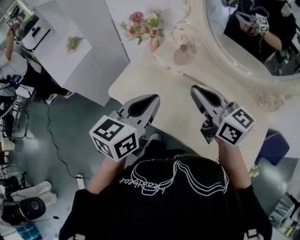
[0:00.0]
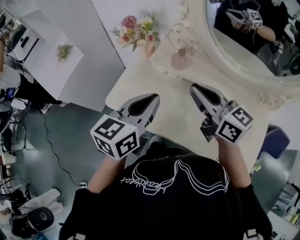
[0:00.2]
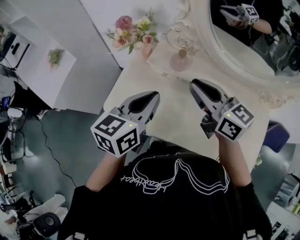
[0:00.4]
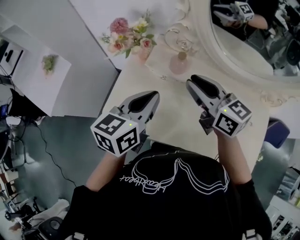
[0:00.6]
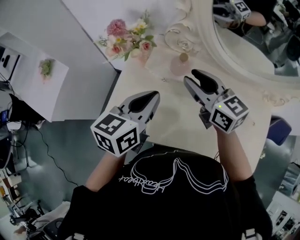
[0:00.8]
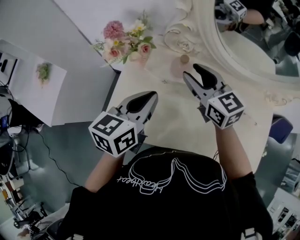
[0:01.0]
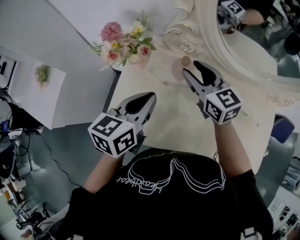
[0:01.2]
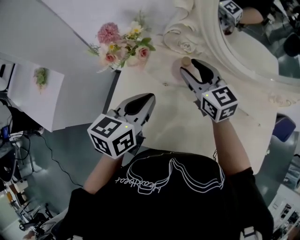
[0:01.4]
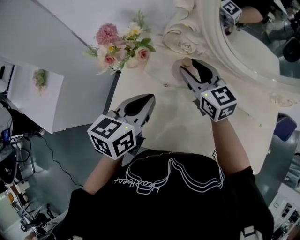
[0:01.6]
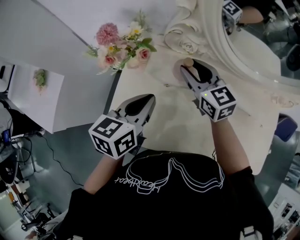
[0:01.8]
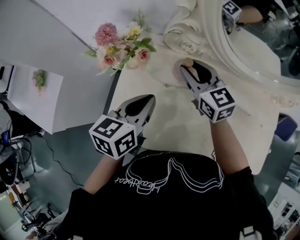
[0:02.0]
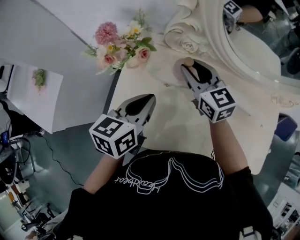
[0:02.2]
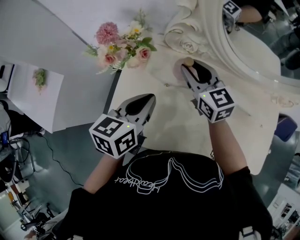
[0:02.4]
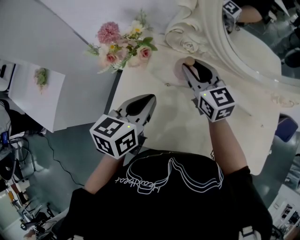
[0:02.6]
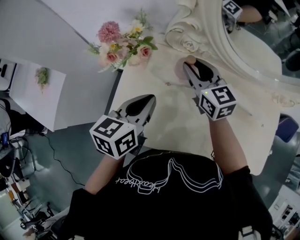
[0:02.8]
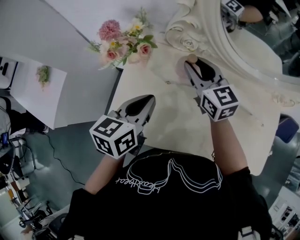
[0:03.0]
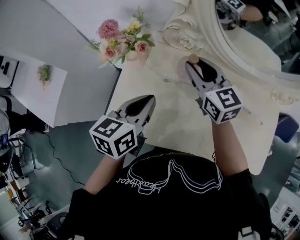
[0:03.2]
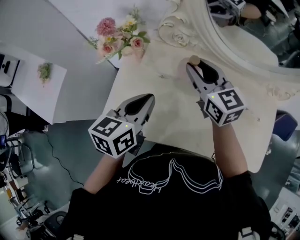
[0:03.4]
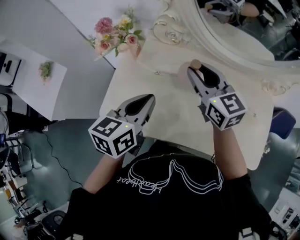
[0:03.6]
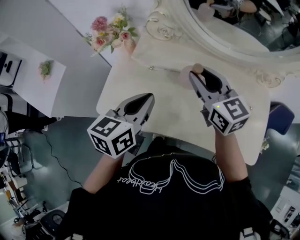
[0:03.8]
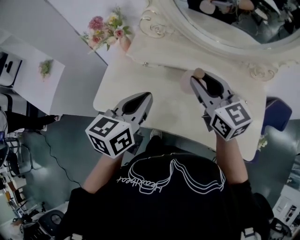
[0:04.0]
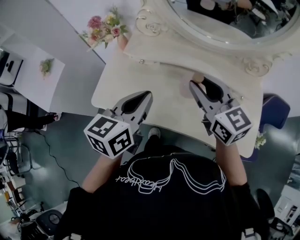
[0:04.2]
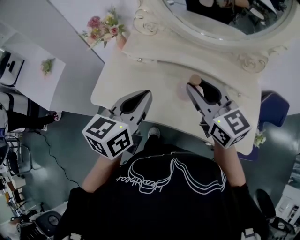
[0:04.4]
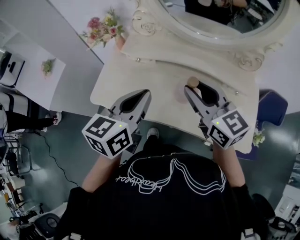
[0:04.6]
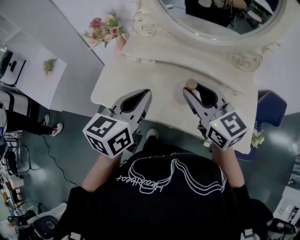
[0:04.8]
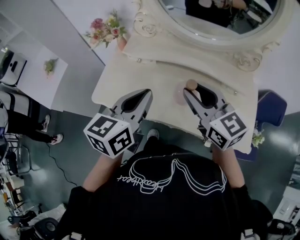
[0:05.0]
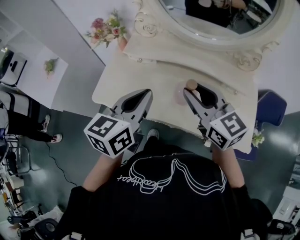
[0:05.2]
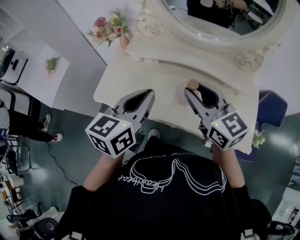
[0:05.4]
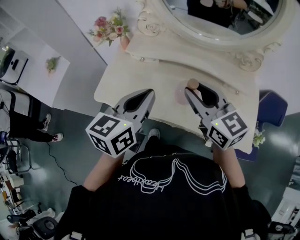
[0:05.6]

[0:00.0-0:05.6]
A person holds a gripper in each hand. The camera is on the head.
0:00.0 to 0:01.4: The two grippers go some 20 cm forward and downward. The right gripper swivels roughly 30 degrees, and opens its fingers.
0:01.4 to 0:02.8: There are only small adjustments of the grippers.
0:02.8 to 0:04.2: Both grippers travel together backward, to the right and upward, approximately 25 cm.
0:04.2 to 0:05.6: Both grippers travel together backward, approximately 5 cm.

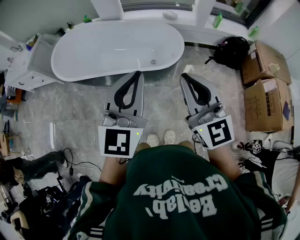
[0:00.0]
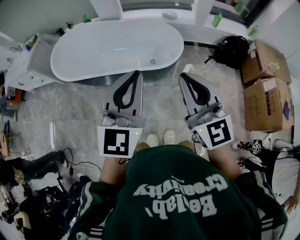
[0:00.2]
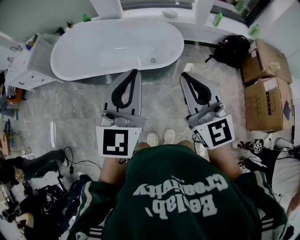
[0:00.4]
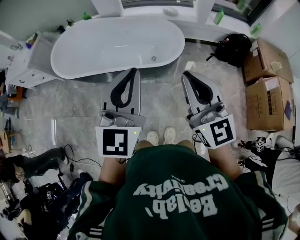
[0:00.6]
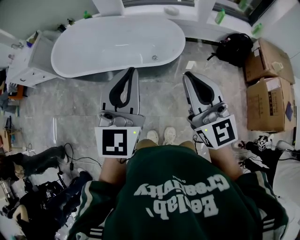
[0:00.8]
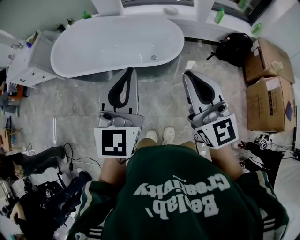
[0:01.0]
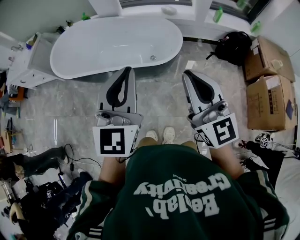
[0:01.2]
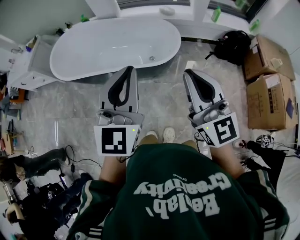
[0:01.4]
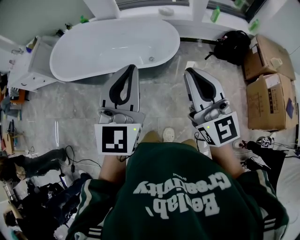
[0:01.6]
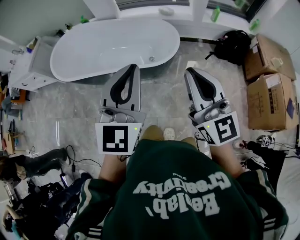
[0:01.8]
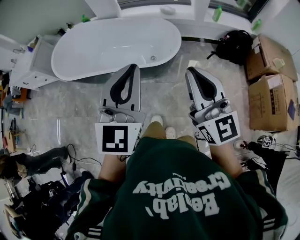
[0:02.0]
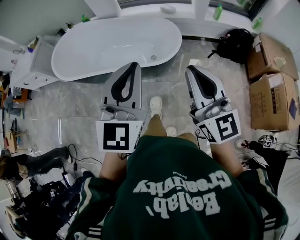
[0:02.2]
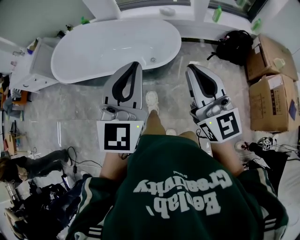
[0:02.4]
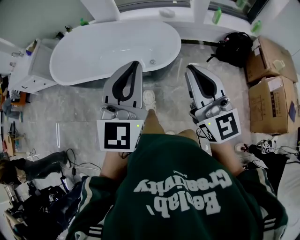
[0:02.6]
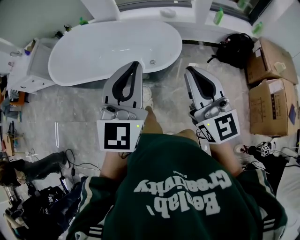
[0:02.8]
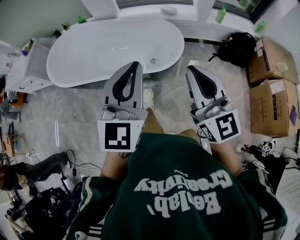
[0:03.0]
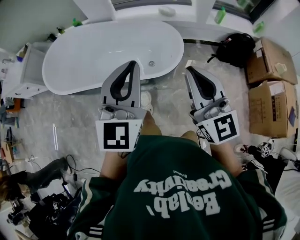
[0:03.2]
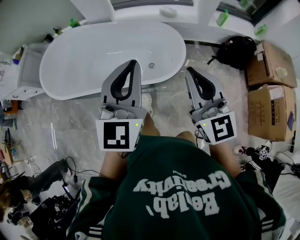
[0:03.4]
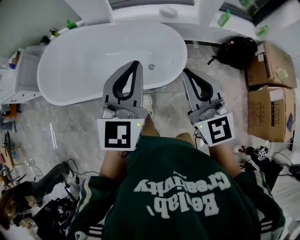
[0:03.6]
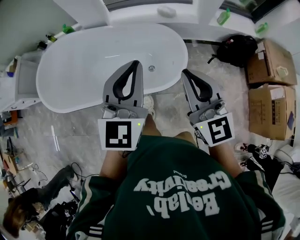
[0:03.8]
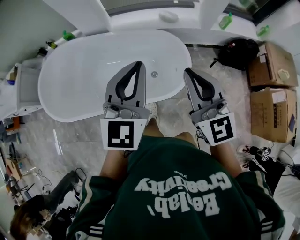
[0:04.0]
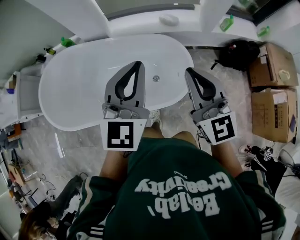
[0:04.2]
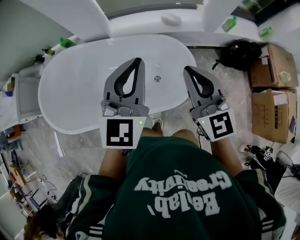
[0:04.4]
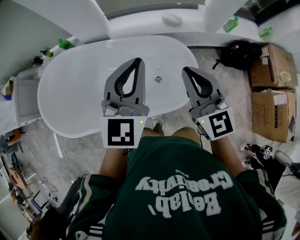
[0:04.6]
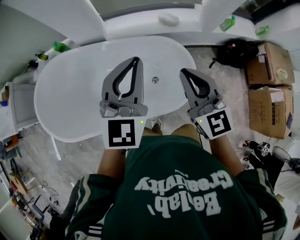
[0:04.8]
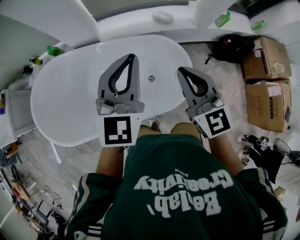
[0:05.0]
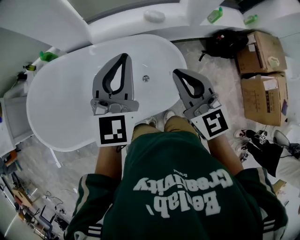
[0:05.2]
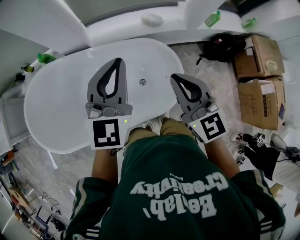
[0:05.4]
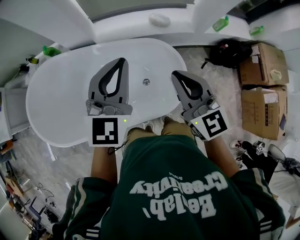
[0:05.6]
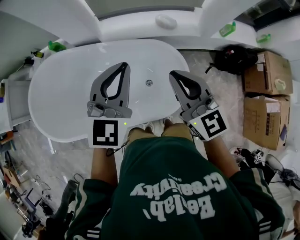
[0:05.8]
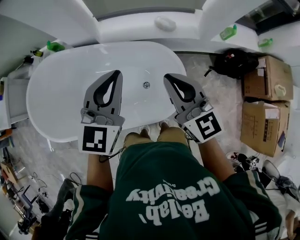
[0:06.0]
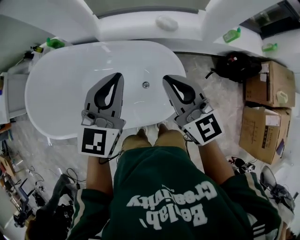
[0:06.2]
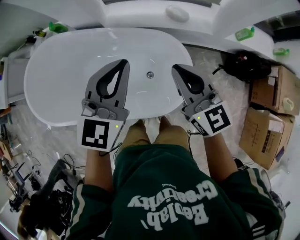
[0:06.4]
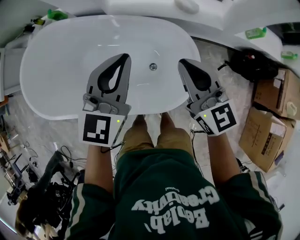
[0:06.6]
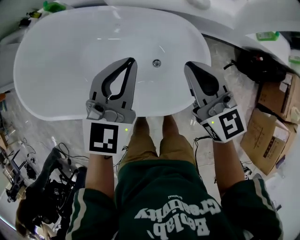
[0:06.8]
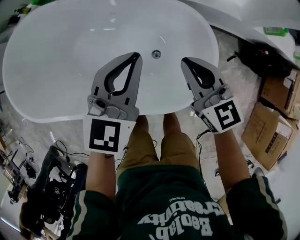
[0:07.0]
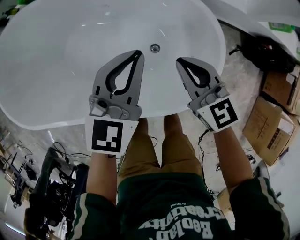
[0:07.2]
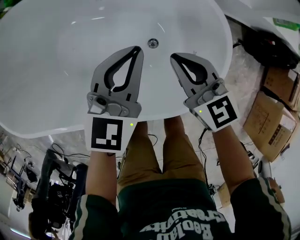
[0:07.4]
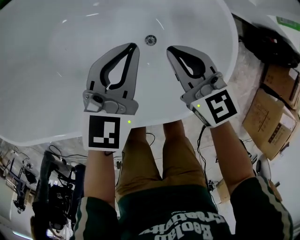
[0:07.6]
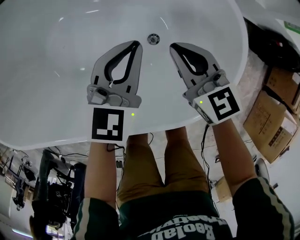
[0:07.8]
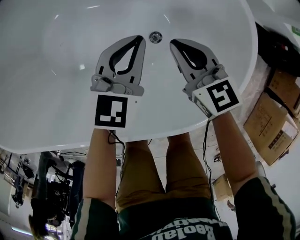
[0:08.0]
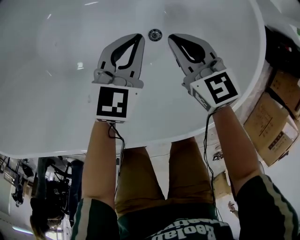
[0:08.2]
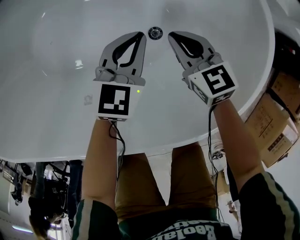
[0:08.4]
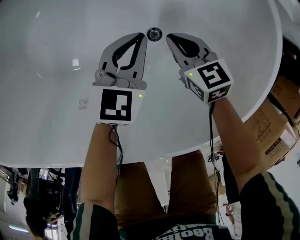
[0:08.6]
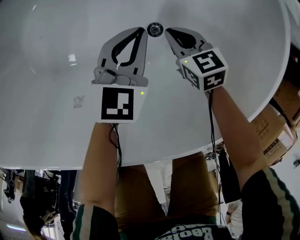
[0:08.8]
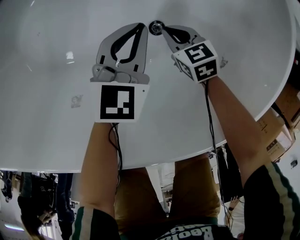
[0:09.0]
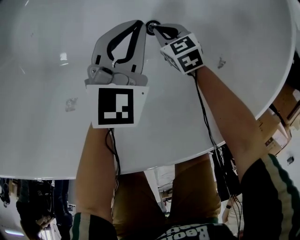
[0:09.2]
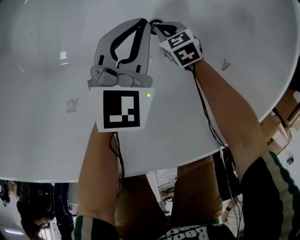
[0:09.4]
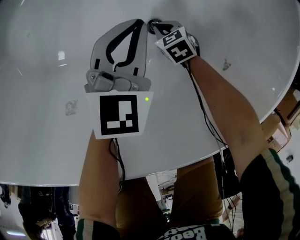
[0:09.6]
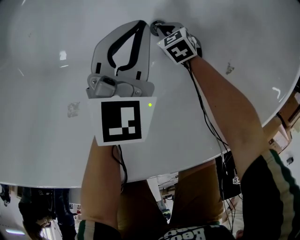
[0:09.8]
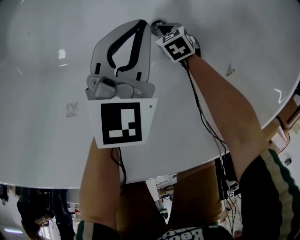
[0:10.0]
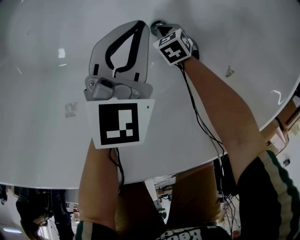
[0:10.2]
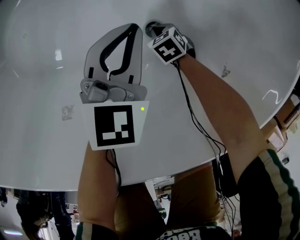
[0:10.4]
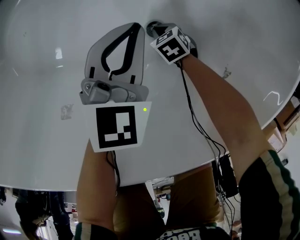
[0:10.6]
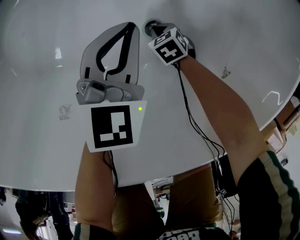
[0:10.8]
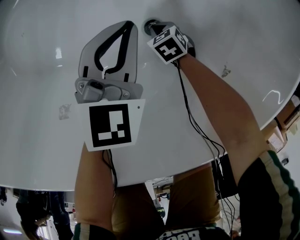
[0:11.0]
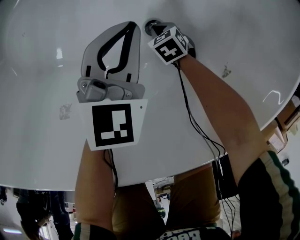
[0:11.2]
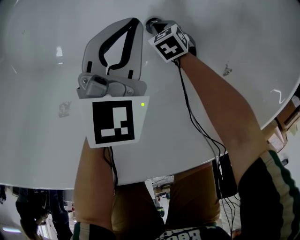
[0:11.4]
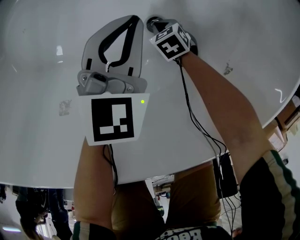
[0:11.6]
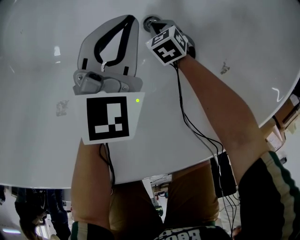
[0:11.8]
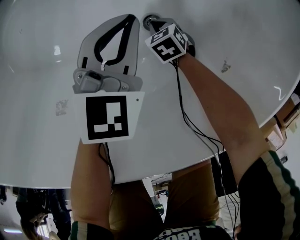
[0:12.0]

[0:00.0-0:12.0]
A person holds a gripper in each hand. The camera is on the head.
0:00.0 to 0:01.6: The grippers both shift to the right by roughly 5 cm.
0:01.6 to 0:03.0: The grippers both shift forward by approximately 10 cm.
0:03.0 to 0:04.4: Both grippers move forward, roughly 35 cm.
0:04.4 to 0:06.0: The left gripper shifts some 10 cm forward and downward. The right gripper heads forward, covering about 10 cm.
0:06.0 to 0:07.6: The two grippers go roughly 40 cm downward. The right gripper swivels about 30 degrees.
0:07.6 to 0:09.0: The two grippers go roughly 30 cm downward. The right gripper rotates some 30 degrees.
0:09.0 to 0:10.4: The right gripper goes approximately 15 cm downward, and turns by roughly 30 degrees.
0:10.4 to 0:12.0: There are only small adjustments of the grippers.

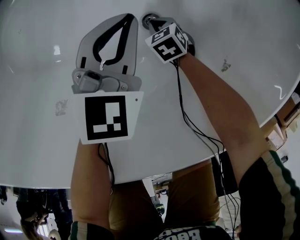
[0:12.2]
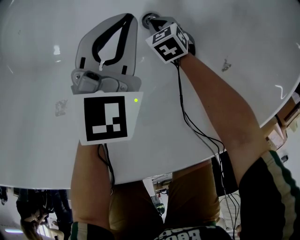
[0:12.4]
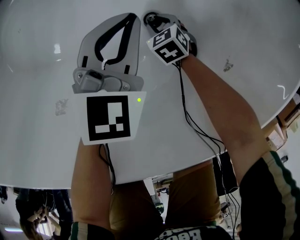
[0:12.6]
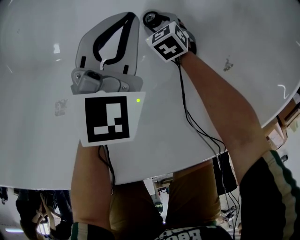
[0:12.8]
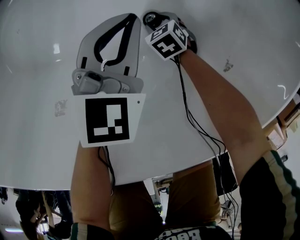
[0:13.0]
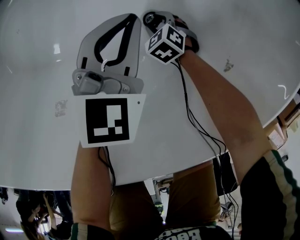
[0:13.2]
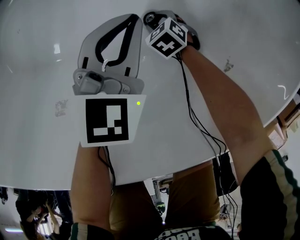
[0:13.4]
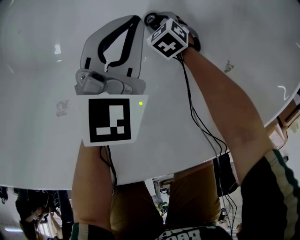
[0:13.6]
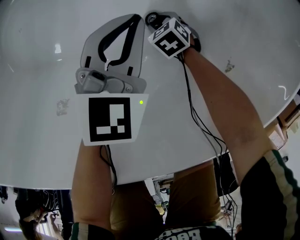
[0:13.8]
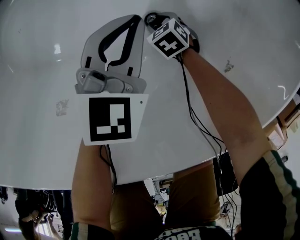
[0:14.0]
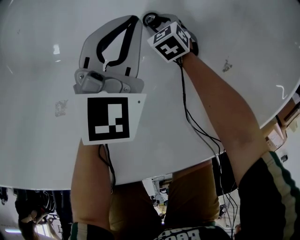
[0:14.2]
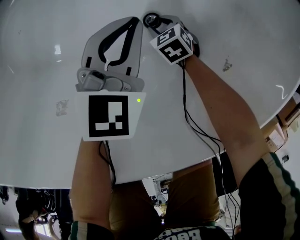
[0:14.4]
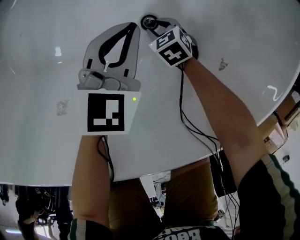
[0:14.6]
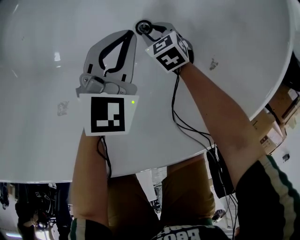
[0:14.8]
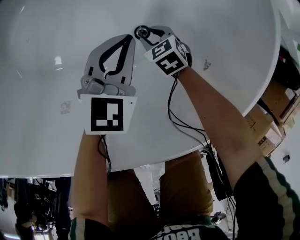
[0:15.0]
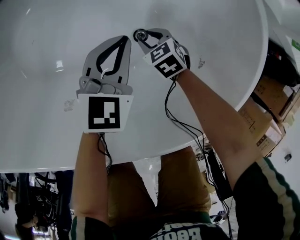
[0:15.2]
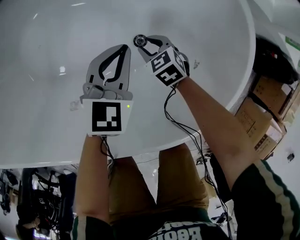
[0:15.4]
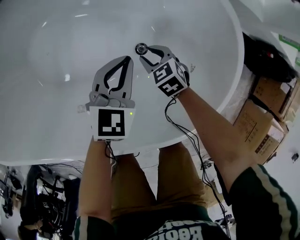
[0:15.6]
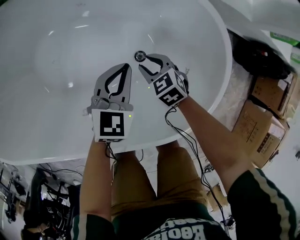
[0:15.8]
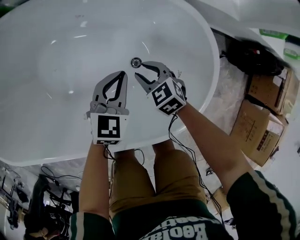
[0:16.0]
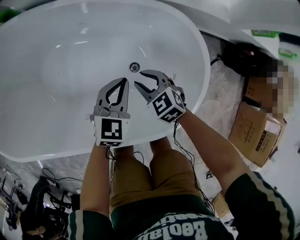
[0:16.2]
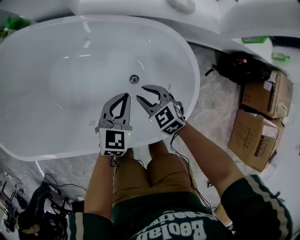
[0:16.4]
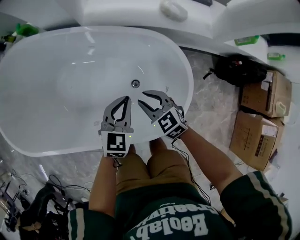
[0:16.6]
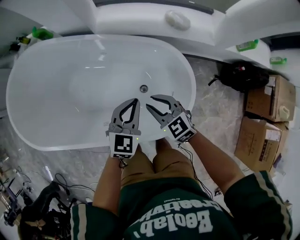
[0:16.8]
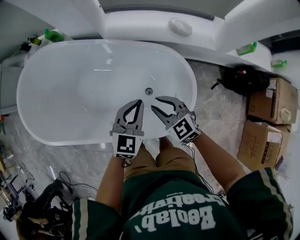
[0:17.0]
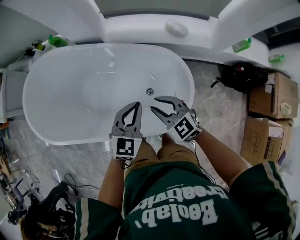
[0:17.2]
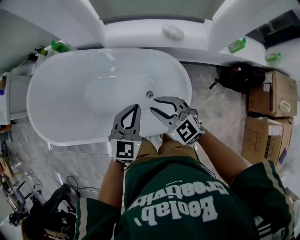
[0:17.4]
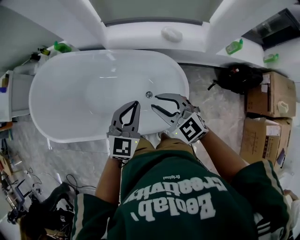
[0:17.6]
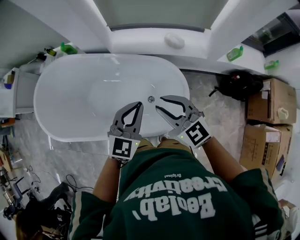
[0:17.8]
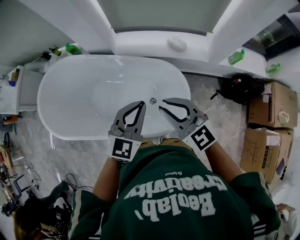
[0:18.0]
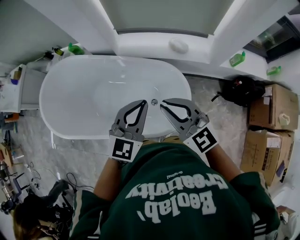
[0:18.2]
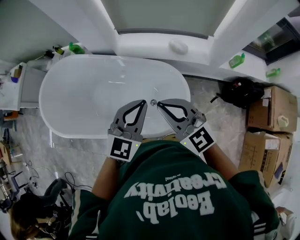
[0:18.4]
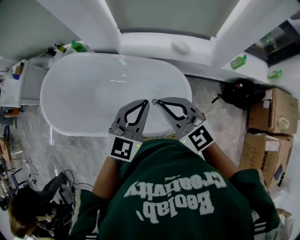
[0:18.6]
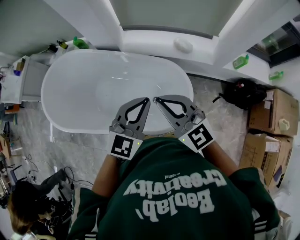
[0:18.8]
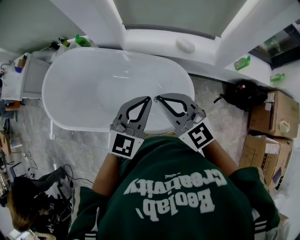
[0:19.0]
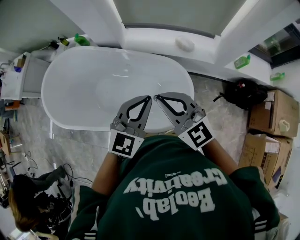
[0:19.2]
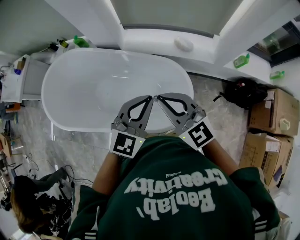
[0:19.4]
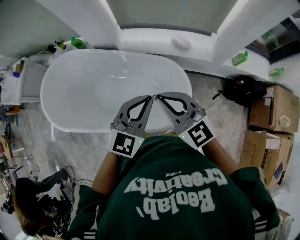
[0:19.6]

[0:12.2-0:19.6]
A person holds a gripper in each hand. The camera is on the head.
0:12.2 to 0:13.6: The right gripper opens its fingers.
0:13.6 to 0:15.2: The right gripper travels upward by some 15 cm; the left gripper travels upward by approximately 5 cm.
0:15.2 to 0:16.6: Both grippers travel together upward, about 30 cm. The right gripper changes its angle by about 20 degrees.
0:16.6 to 0:18.2: The two grippers go roughly 35 cm upward. The left gripper swivels roughly 20 degrees, while the right gripper tilts its fingers some 30 degrees upward.
0:18.2 to 0:19.6: There are only small adjustments of the grippers.
